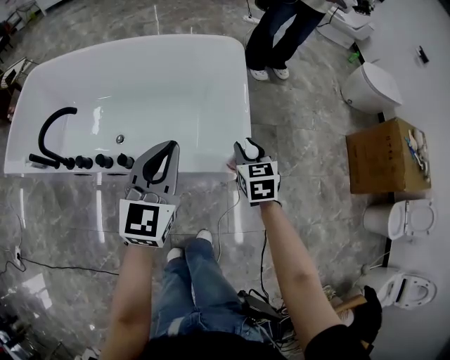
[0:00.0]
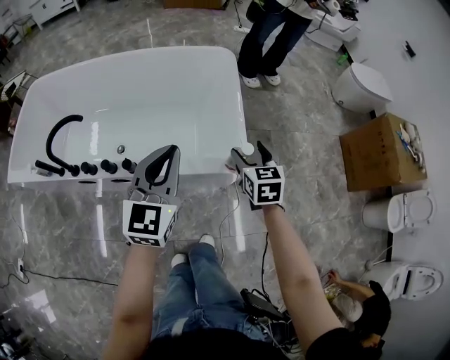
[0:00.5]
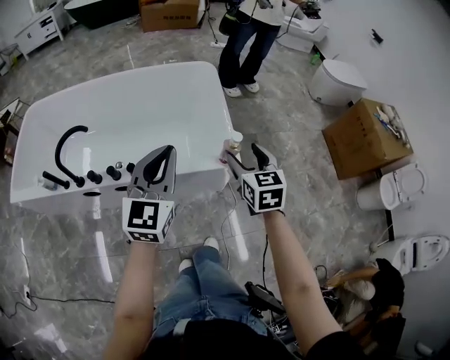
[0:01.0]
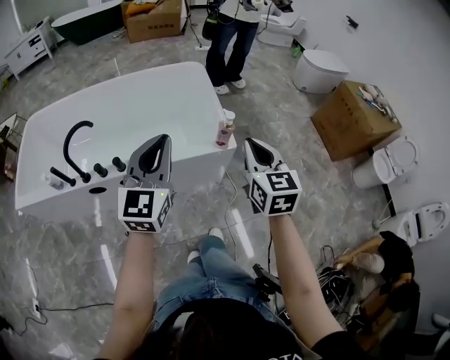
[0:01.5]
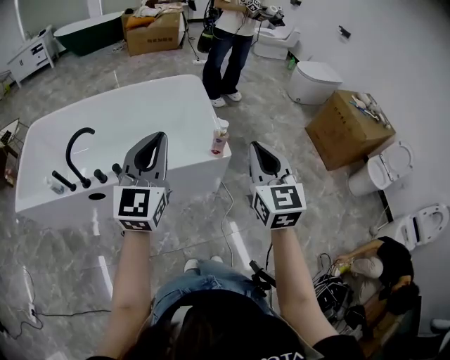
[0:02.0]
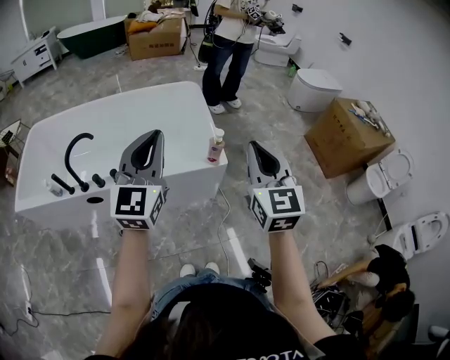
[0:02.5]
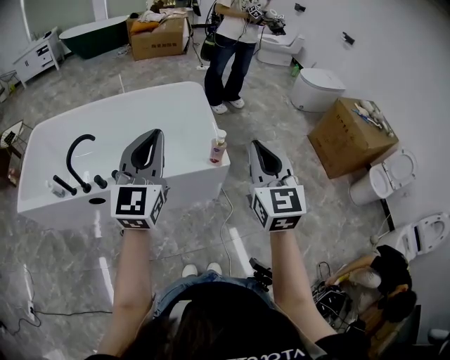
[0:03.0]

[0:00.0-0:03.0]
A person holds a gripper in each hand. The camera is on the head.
0:00.0 to 0:01.5: The left gripper heads backward and upward, covering roughly 25 cm. The right gripper goes some 35 cm backward and upward, swivels approximately 30 degrees, and closes up.
0:01.5 to 0:03.0: Both grippers move upward, roughly 10 cm.

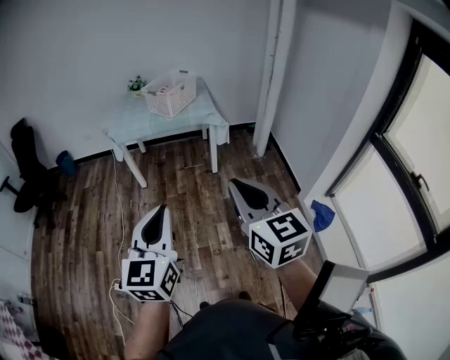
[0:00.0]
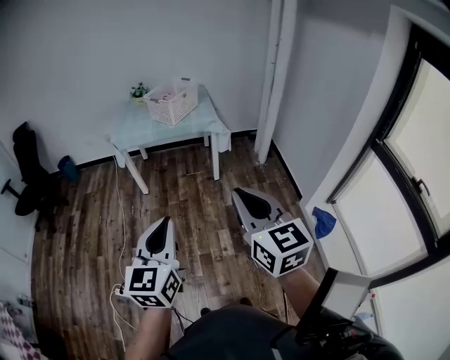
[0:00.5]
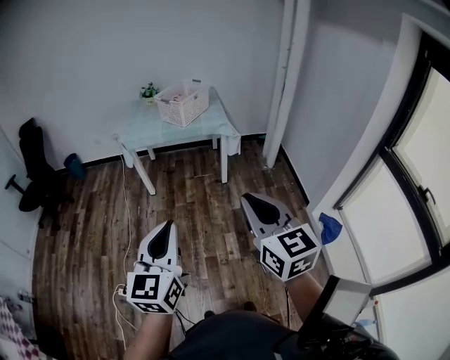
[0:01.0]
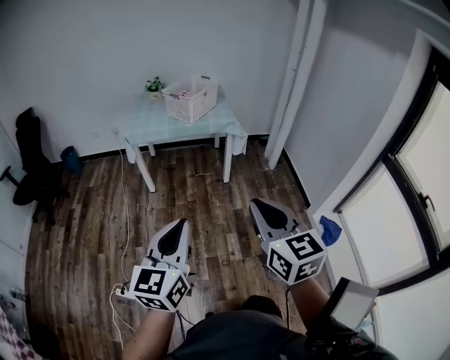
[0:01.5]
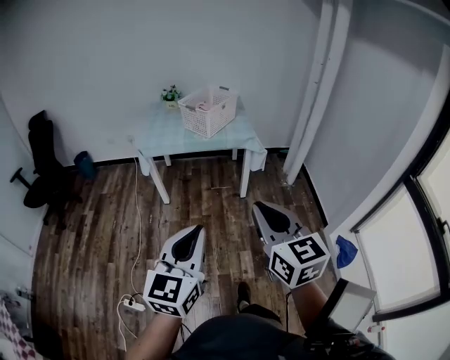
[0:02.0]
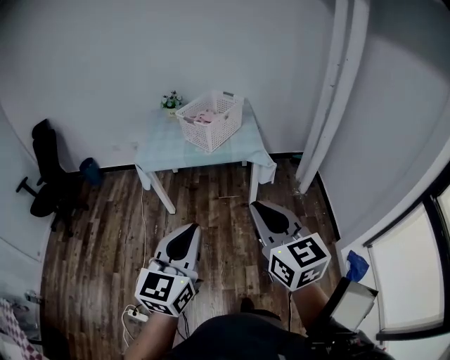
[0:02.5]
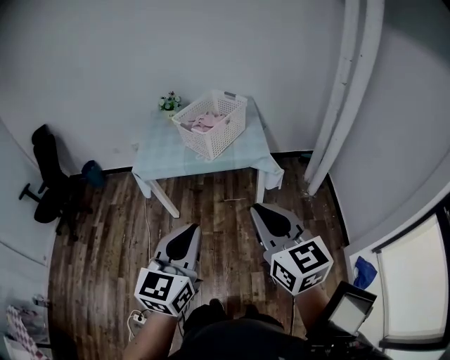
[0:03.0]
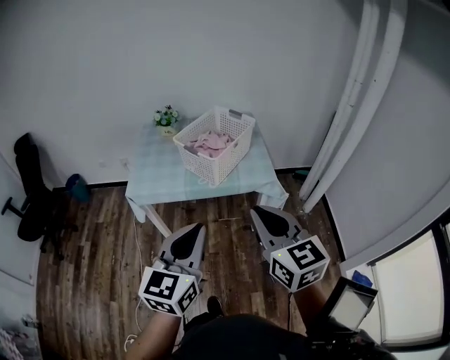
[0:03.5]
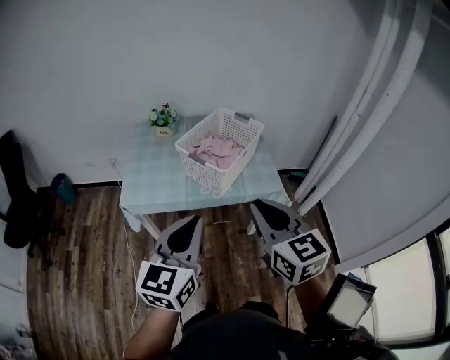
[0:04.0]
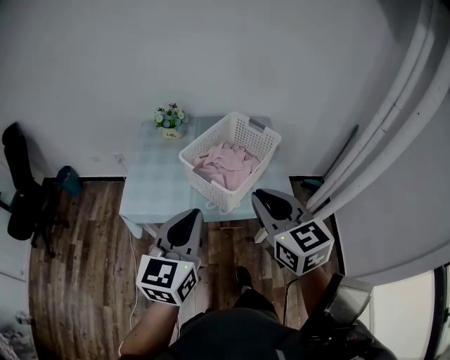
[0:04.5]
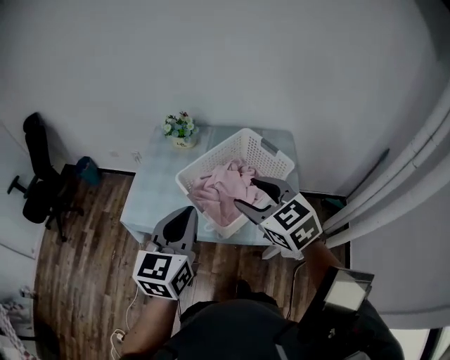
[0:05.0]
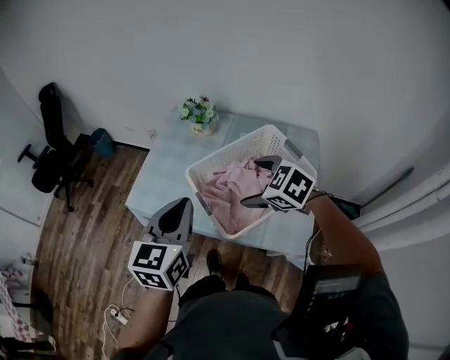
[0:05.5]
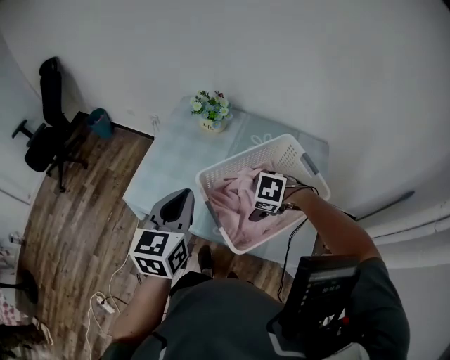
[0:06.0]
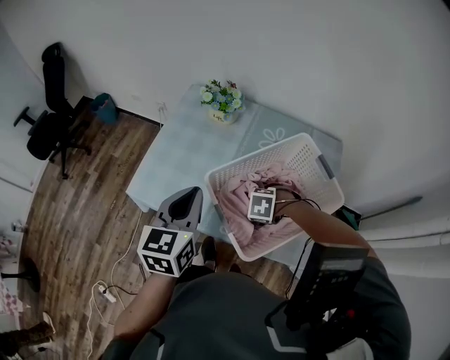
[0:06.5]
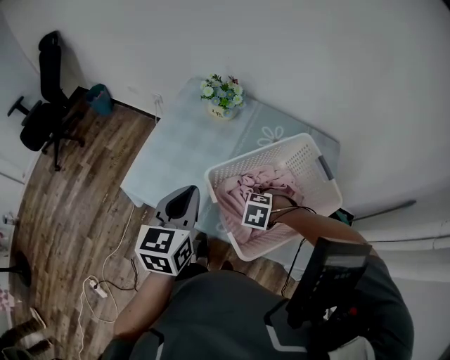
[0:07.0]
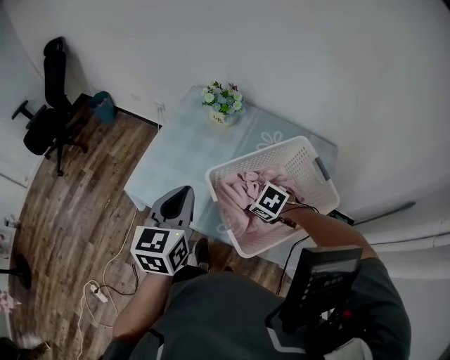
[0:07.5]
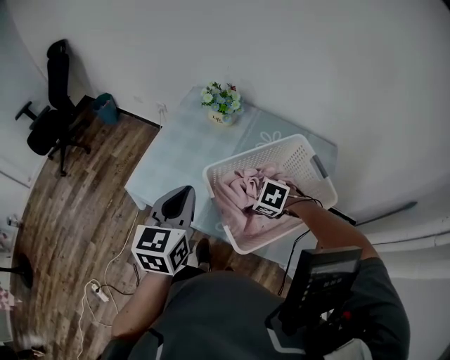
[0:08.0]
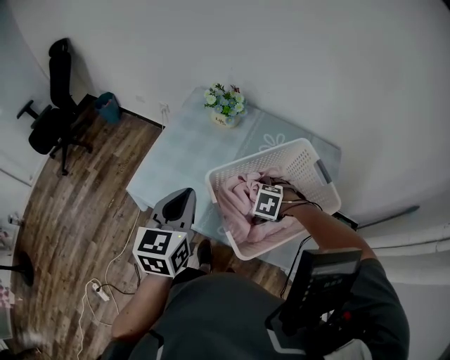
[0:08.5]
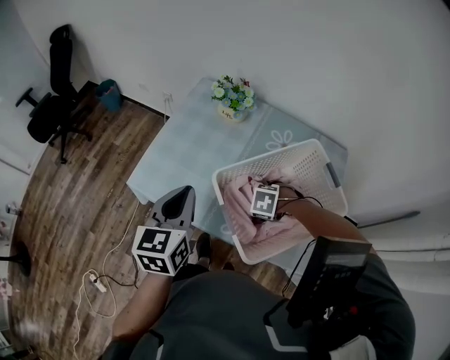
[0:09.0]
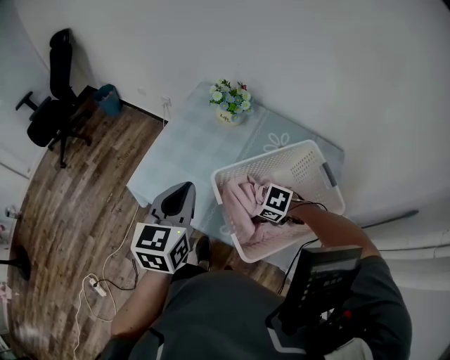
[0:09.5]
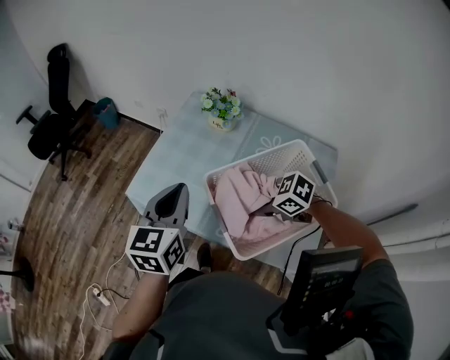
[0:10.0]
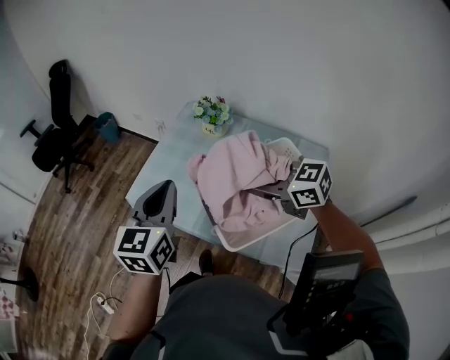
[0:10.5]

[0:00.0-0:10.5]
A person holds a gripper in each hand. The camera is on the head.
0:00.0 to 0:02.0: The two grippers go roughly 15 cm forward and to the left.
0:02.0 to 0:04.0: The pair of grippers is taken forward, approximately 50 cm.
0:04.0 to 0:06.5: The left gripper shifts by approximately 35 cm, and turns by approximately 30 degrees, while the right gripper heads downward, covering some 40 cm, points its fingers approximately 70 degrees further downward, and opens its fingers.
0:06.5 to 0:08.5: The right gripper closes and opens again.
0:08.5 to 0:10.5: The right gripper is displaced upward by approximately 25 cm, angles its fingers upward, by approximately 60 degrees, and closes its fingers; the left gripper goes roughly 5 cm upward.

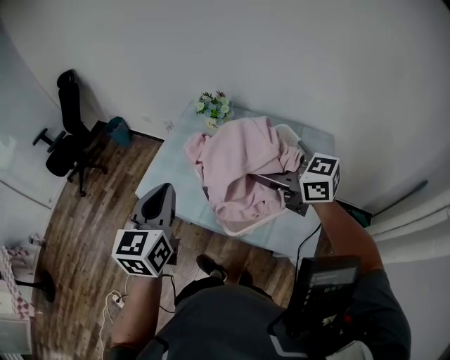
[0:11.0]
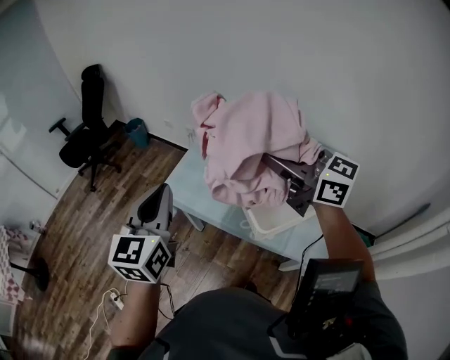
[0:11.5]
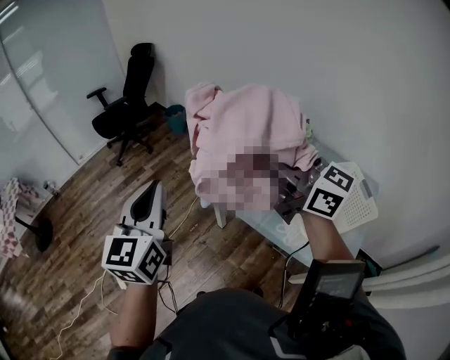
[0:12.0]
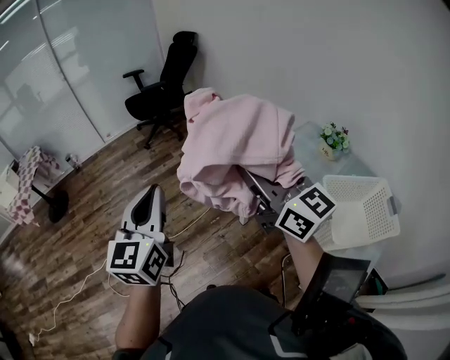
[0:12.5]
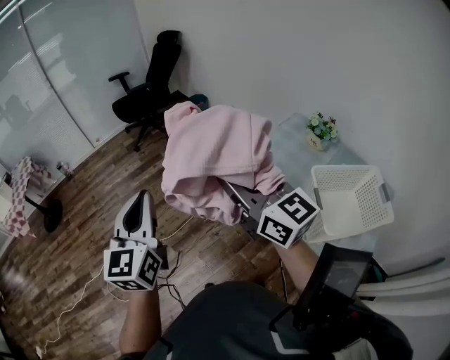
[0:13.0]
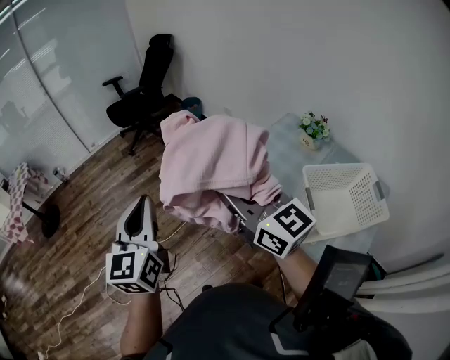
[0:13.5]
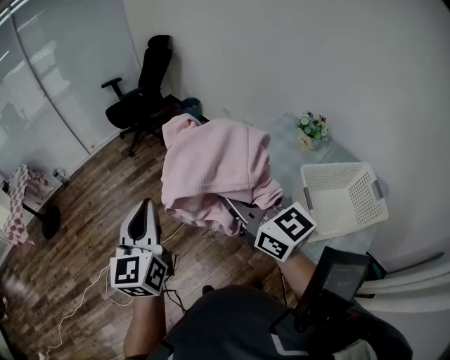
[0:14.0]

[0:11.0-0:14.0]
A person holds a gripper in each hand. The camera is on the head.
0:11.0 to 0:12.5: The two grippers travel together, to the left, some 40 cm. The left gripper swivels roughly 40 degrees, while the right gripper turns by approximately 20 degrees.
0:12.5 to 0:14.0: The right gripper ends up some 5 cm from where it was.

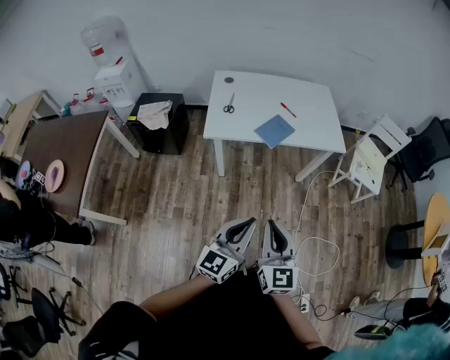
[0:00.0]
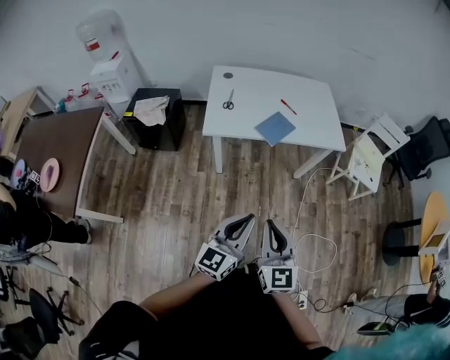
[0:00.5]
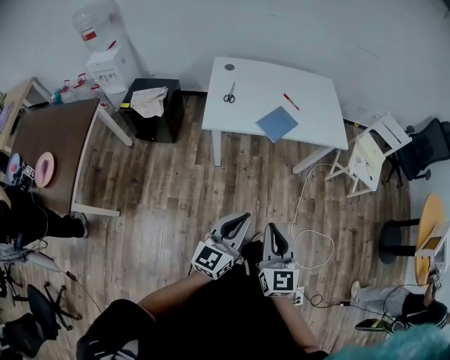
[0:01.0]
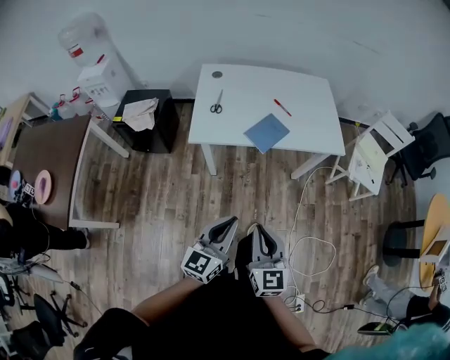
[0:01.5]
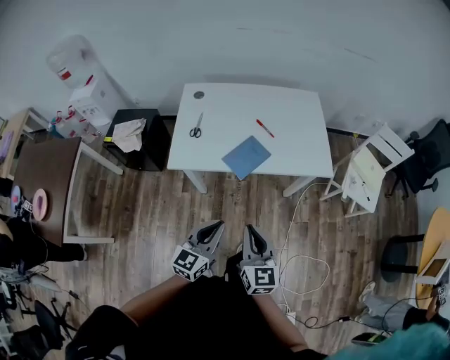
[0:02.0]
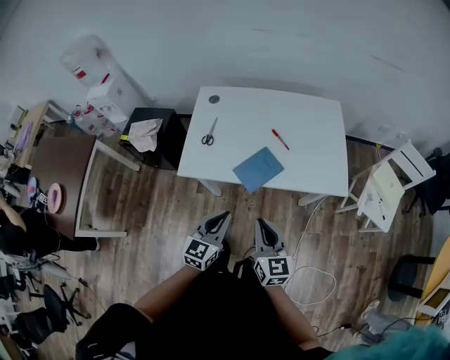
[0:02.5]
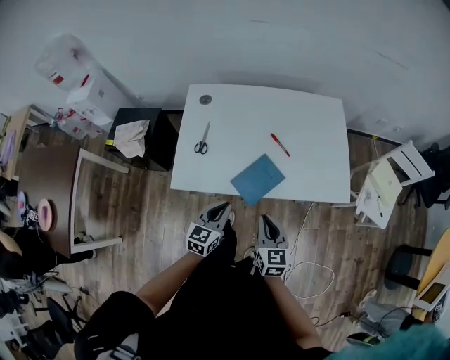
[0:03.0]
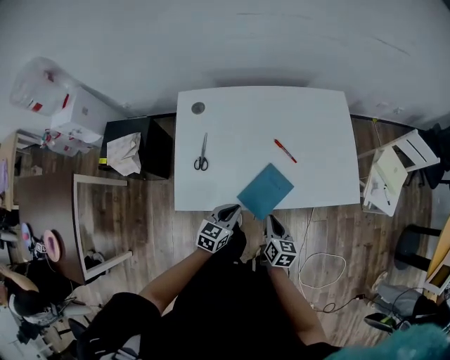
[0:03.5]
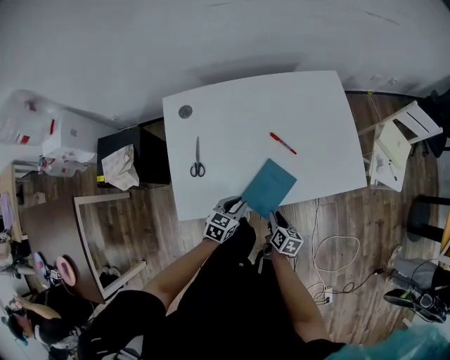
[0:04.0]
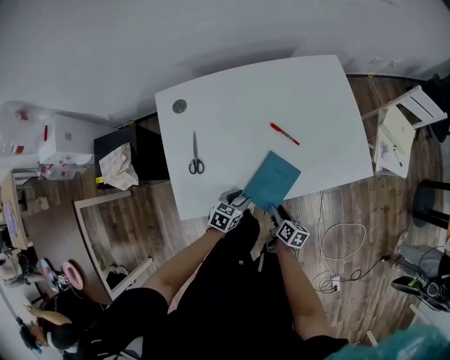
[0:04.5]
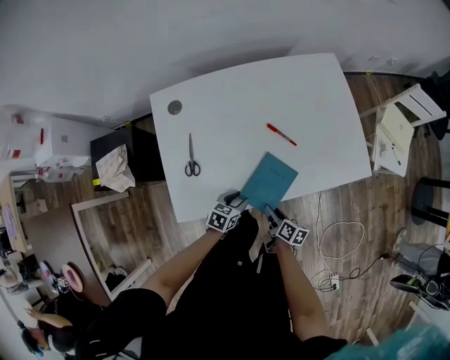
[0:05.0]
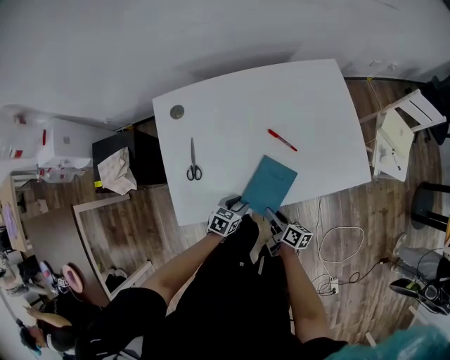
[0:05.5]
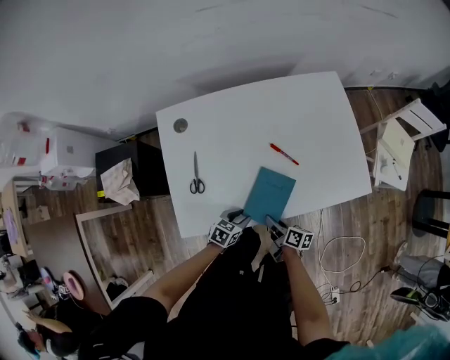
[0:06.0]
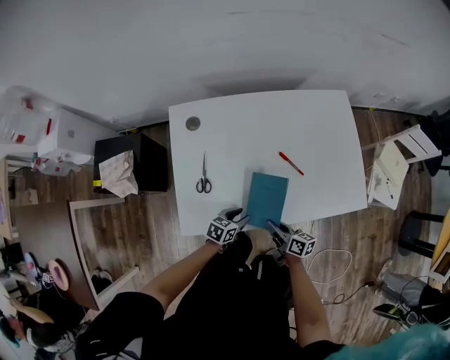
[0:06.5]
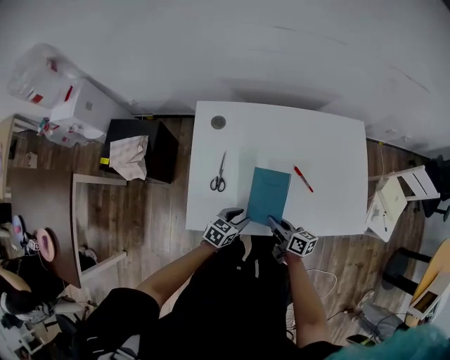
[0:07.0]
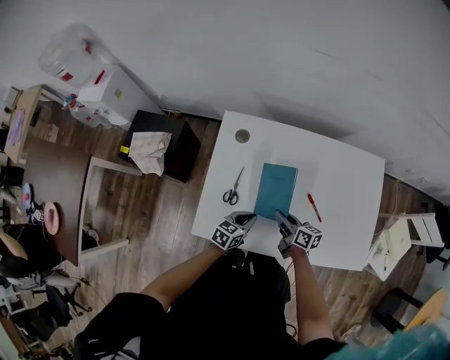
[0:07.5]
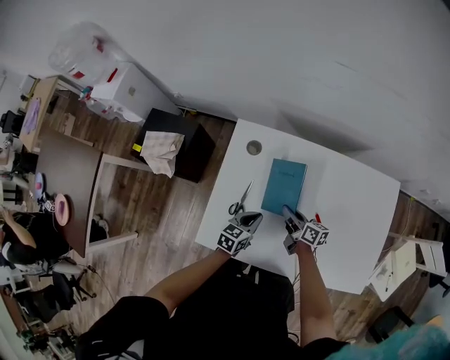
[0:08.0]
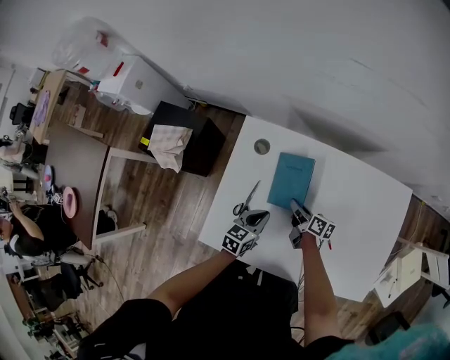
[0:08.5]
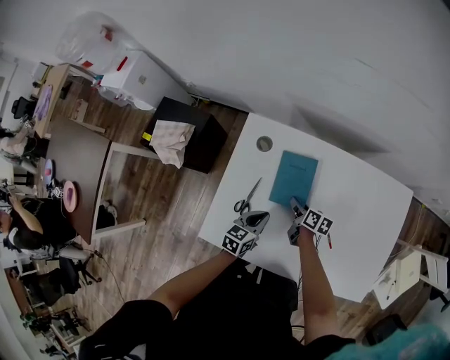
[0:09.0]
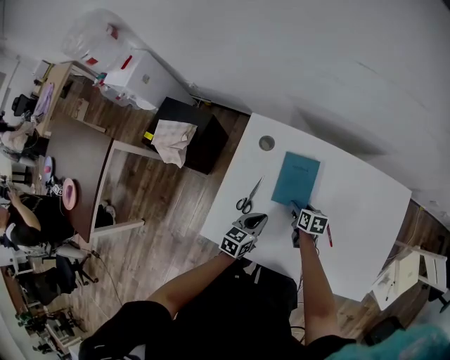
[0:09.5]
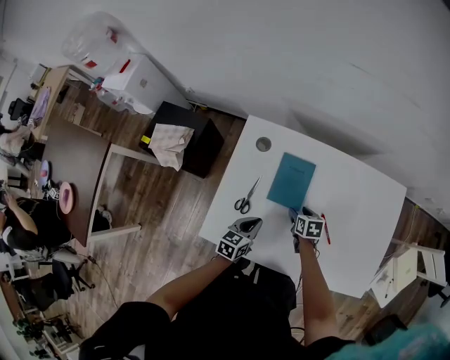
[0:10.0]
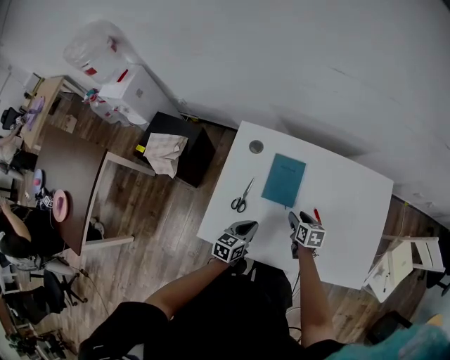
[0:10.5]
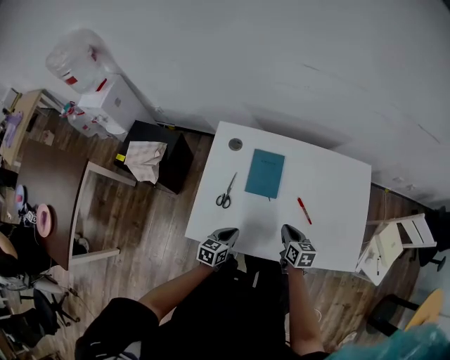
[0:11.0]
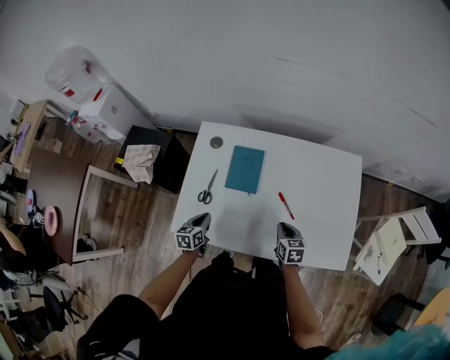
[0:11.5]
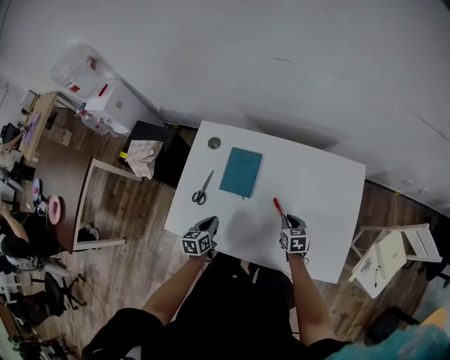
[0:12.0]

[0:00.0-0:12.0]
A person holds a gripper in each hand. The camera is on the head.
0:00.0 to 0:02.0: Both grippers move forward, roughly 25 cm.
0:02.0 to 0:04.0: The left gripper travels forward and downward by about 40 cm, and rotates approximately 30 degrees, while the right gripper moves downward and forward, about 40 cm, angles its fingers downward, by roughly 30 degrees, and opens up.
0:04.0 to 0:06.0: The right gripper moves about 5 cm, and turns by approximately 30 degrees. The left gripper shifts about 5 cm downward.
0:06.0 to 0:08.0: The left gripper ends up approximately 20 cm from where it was, changes its angle by about 40 degrees, and closes up, while the right gripper ends up some 30 cm from where it was, and swivels roughly 30 degrees.
0:08.0 to 0:10.0: The right gripper moves downward, roughly 5 cm, tips its fingers downward by some 40 degrees, and opens its fingers.
0:10.0 to 0:12.0: The right gripper is displaced to the right by roughly 20 cm, and closes its fingers.
